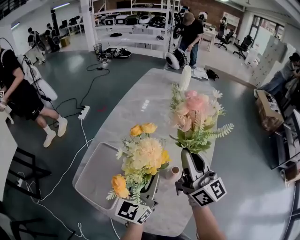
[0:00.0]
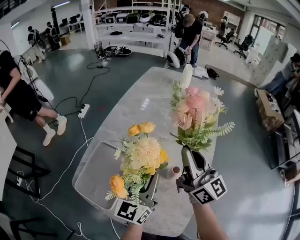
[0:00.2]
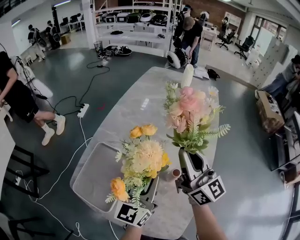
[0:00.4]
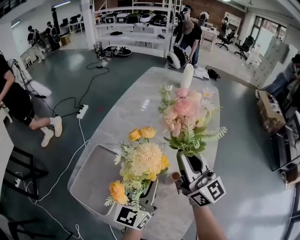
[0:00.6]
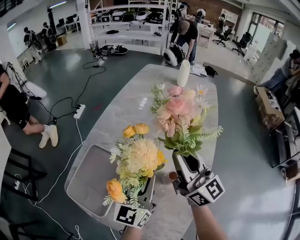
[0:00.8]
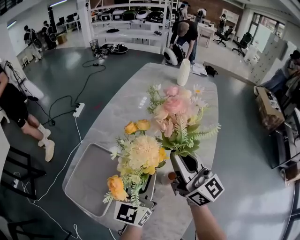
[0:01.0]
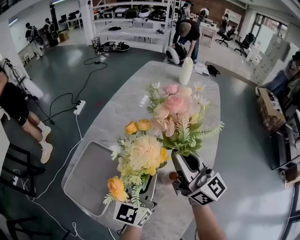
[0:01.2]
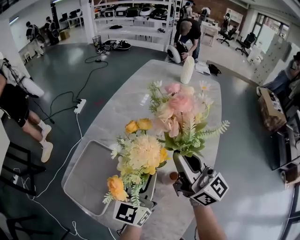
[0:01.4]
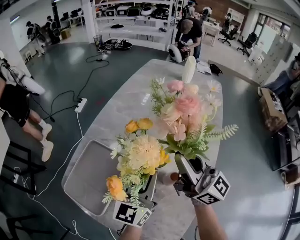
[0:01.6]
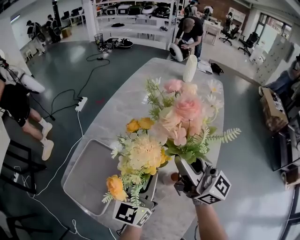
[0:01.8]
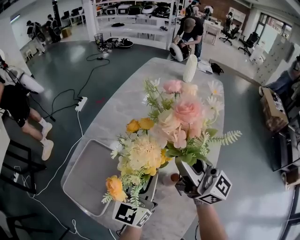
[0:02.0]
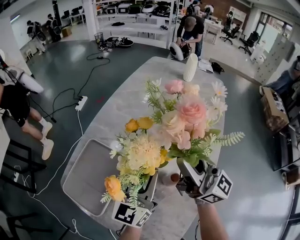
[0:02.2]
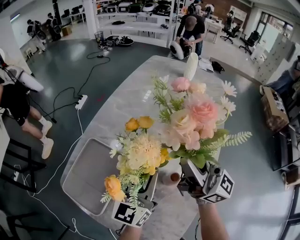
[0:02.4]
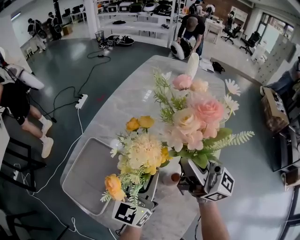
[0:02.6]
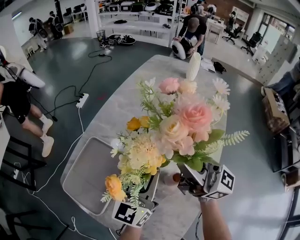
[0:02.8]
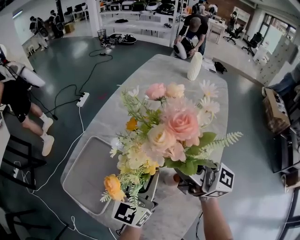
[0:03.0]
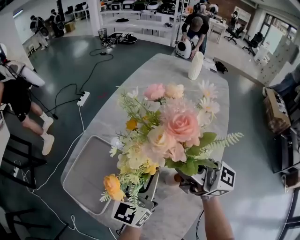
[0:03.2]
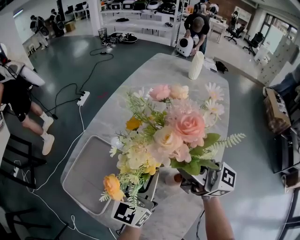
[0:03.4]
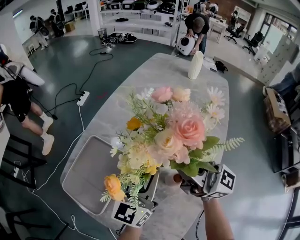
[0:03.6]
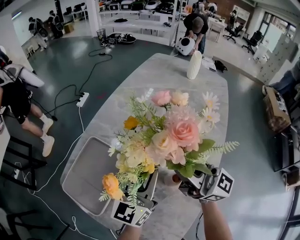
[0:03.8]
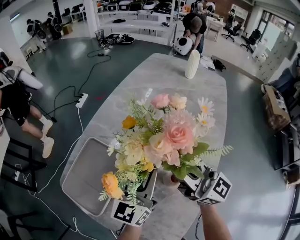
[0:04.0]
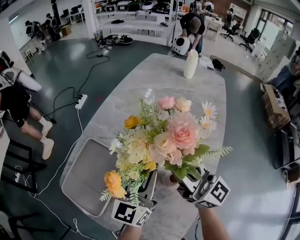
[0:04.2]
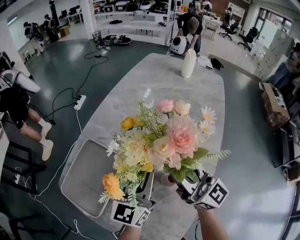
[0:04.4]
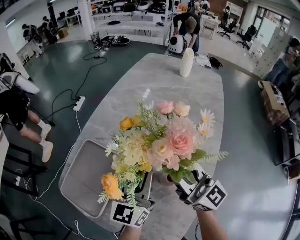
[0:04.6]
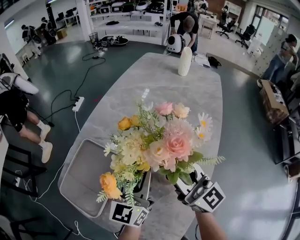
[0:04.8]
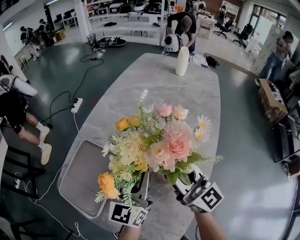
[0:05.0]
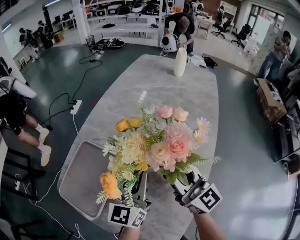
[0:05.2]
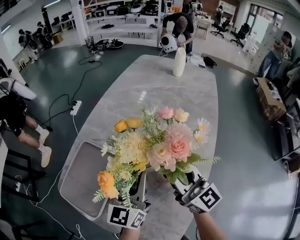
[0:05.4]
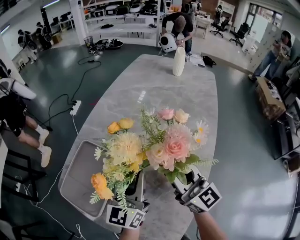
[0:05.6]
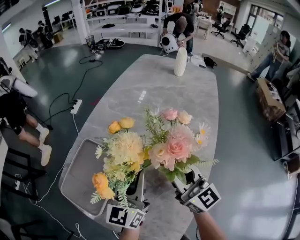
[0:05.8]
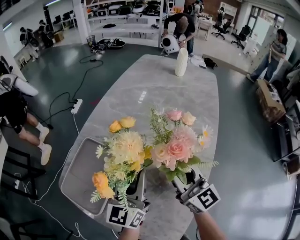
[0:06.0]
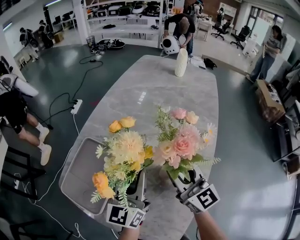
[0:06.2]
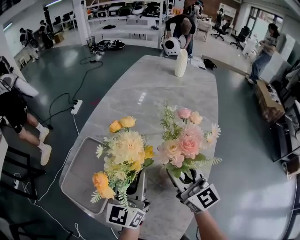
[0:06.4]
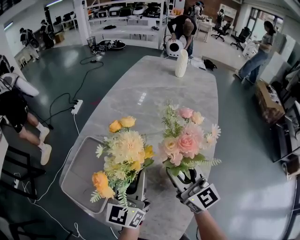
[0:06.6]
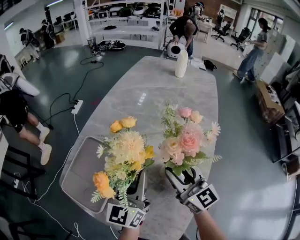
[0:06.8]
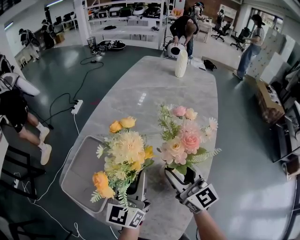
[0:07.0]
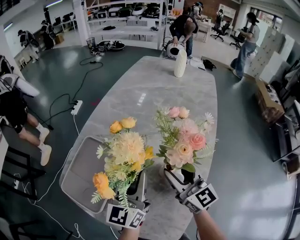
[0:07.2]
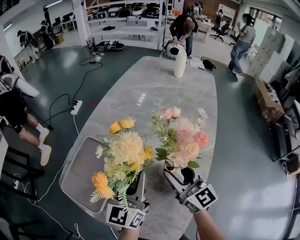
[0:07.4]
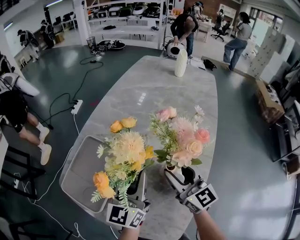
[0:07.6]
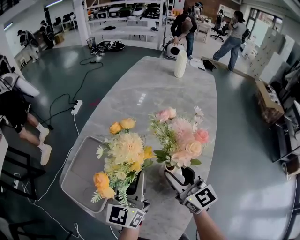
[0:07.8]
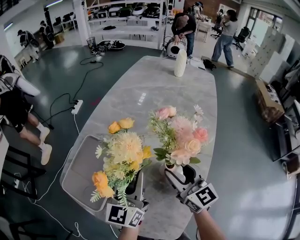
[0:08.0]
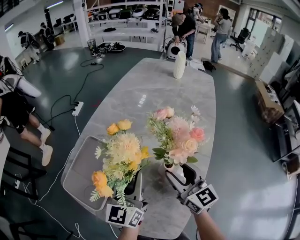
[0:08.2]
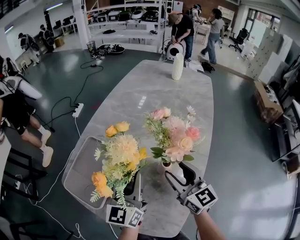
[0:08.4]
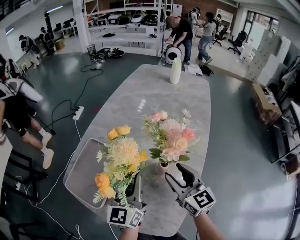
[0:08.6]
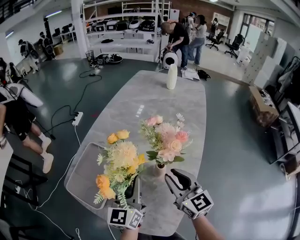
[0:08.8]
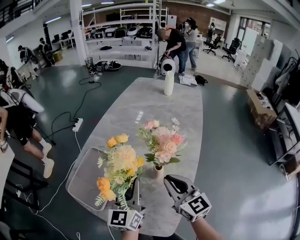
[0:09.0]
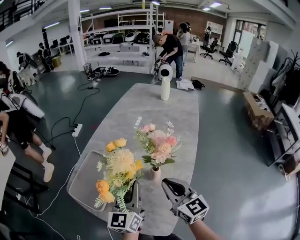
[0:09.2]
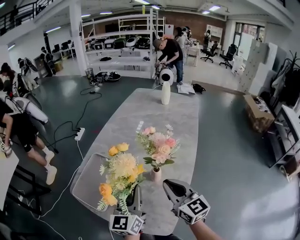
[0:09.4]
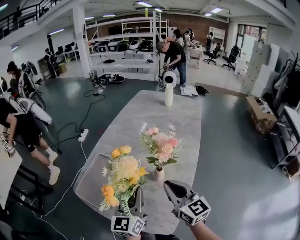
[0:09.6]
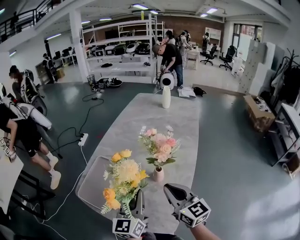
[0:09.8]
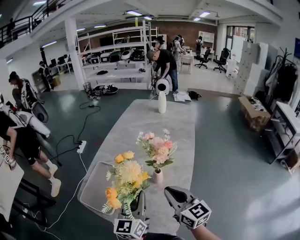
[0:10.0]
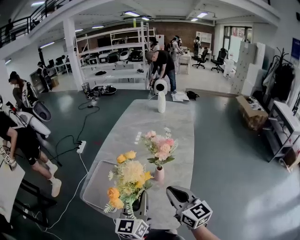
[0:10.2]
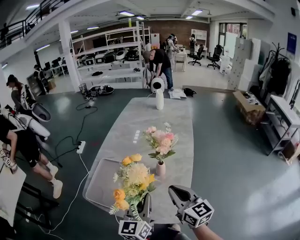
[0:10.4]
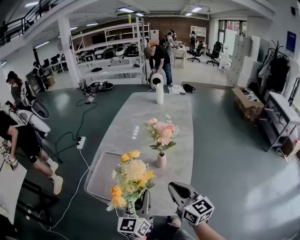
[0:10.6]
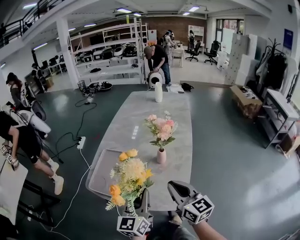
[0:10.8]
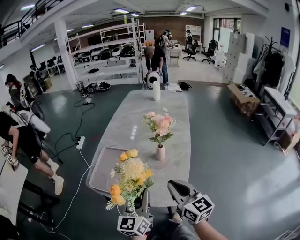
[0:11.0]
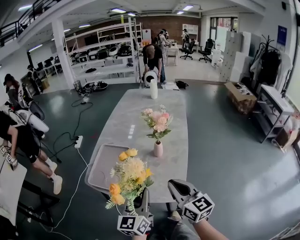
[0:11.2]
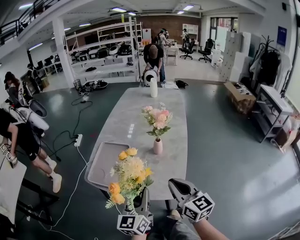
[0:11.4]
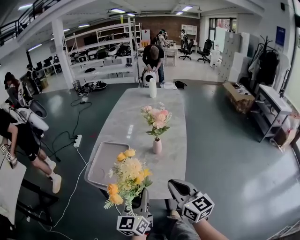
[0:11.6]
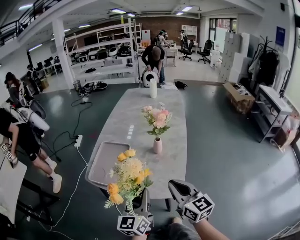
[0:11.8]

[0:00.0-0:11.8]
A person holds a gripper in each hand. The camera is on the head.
0:00.0 to 0:01.4: The left gripper ends up roughly 5 cm from where it was.
0:01.4 to 0:03.0: The right gripper rotates some 30 degrees.
0:03.0 to 0:04.4: The right gripper shifts approximately 5 cm downward, and changes its angle by about 20 degrees.
0:04.4 to 0:06.0: The grippers move only a little.
0:06.0 to 0:07.4: The right gripper opens its fingers.
0:07.4 to 0:08.8: The right gripper moves about 5 cm.
0:08.8 to 0:10.4: The left gripper goes approximately 15 cm backward. Meanwhile the right gripper shifts about 15 cm backward and upward, and closes.
0:10.4 to 0:11.8: The grippers both shift backward by about 15 cm.

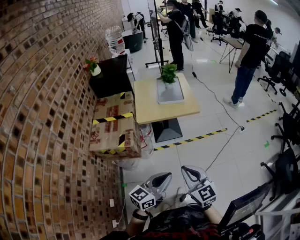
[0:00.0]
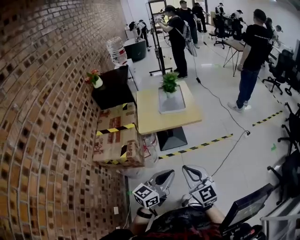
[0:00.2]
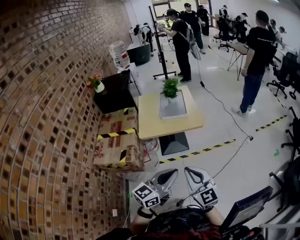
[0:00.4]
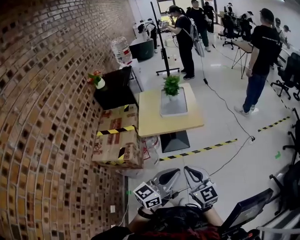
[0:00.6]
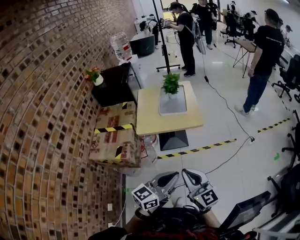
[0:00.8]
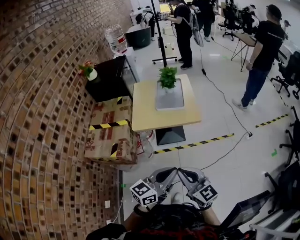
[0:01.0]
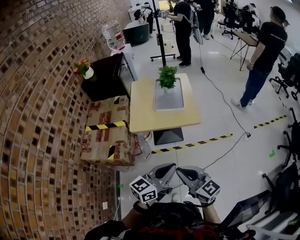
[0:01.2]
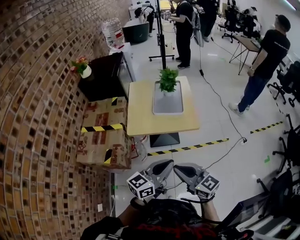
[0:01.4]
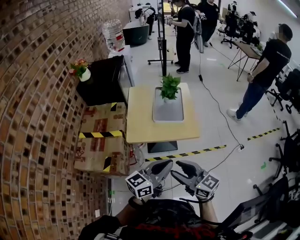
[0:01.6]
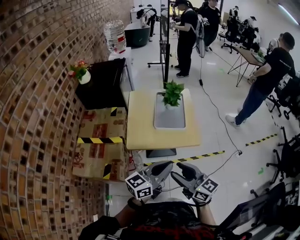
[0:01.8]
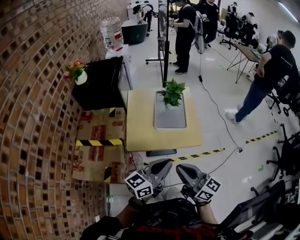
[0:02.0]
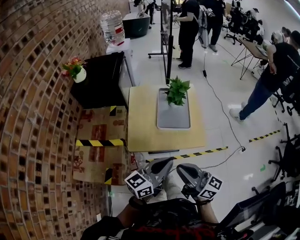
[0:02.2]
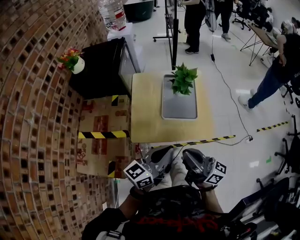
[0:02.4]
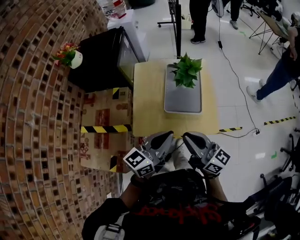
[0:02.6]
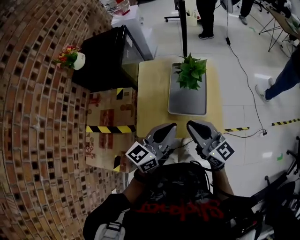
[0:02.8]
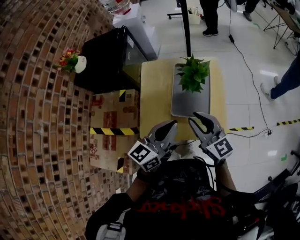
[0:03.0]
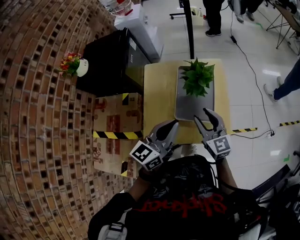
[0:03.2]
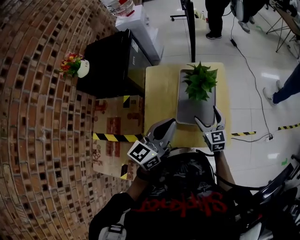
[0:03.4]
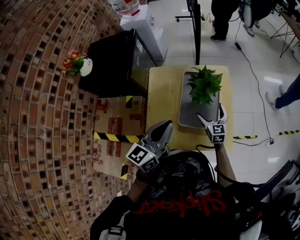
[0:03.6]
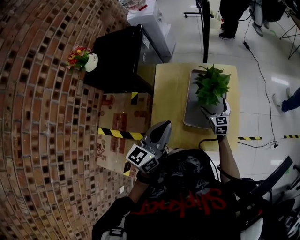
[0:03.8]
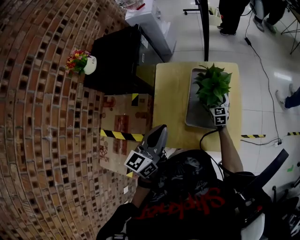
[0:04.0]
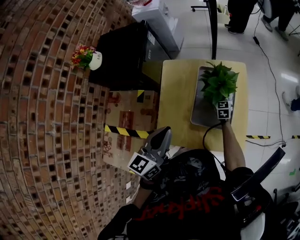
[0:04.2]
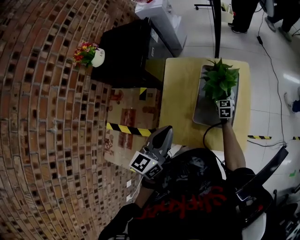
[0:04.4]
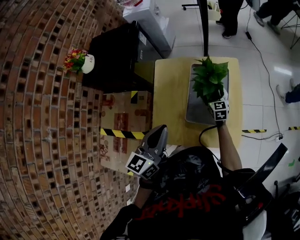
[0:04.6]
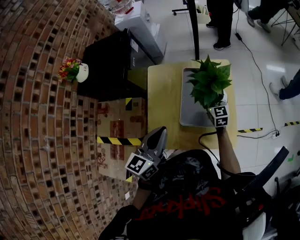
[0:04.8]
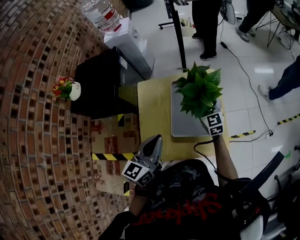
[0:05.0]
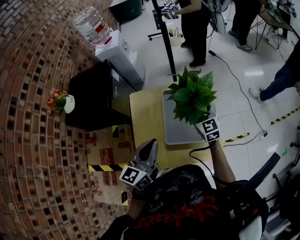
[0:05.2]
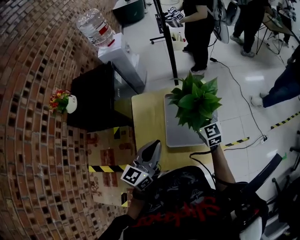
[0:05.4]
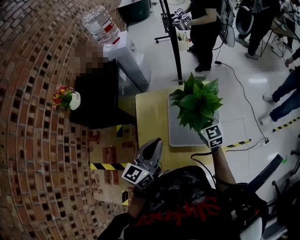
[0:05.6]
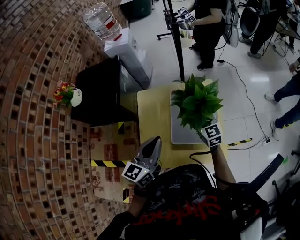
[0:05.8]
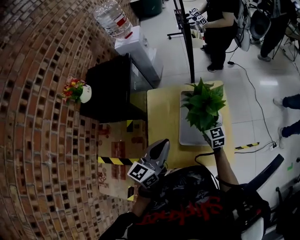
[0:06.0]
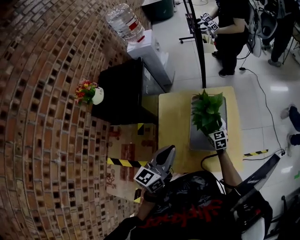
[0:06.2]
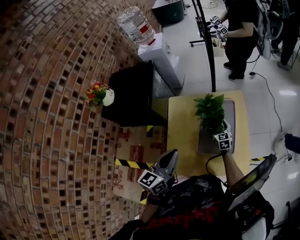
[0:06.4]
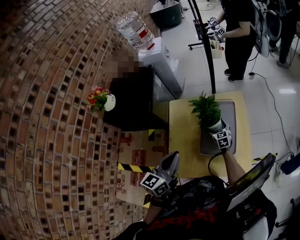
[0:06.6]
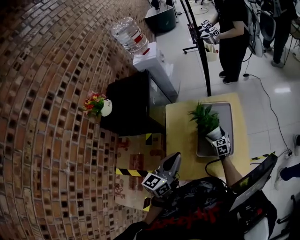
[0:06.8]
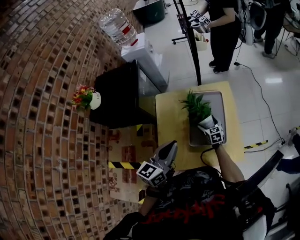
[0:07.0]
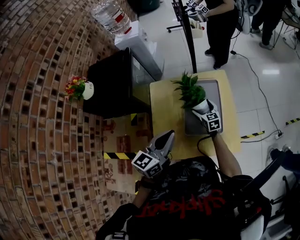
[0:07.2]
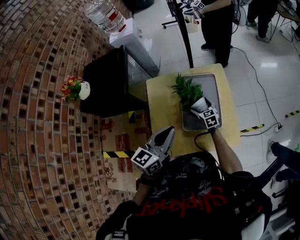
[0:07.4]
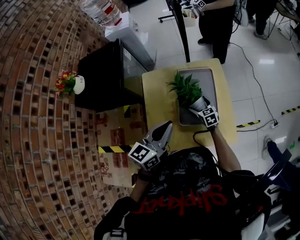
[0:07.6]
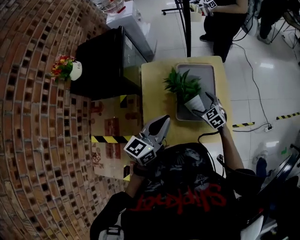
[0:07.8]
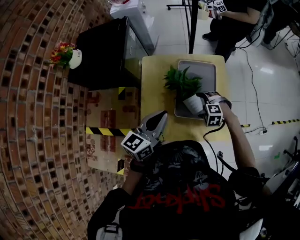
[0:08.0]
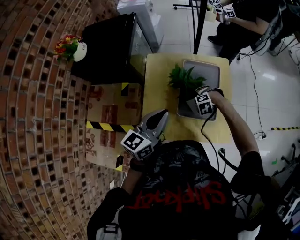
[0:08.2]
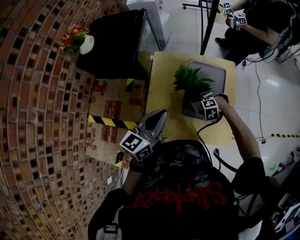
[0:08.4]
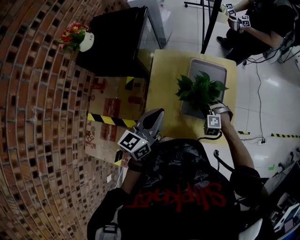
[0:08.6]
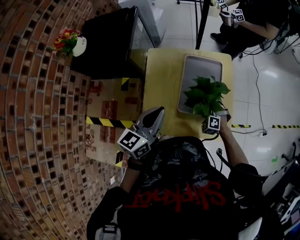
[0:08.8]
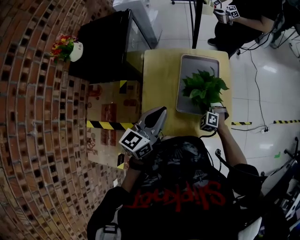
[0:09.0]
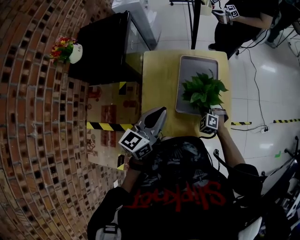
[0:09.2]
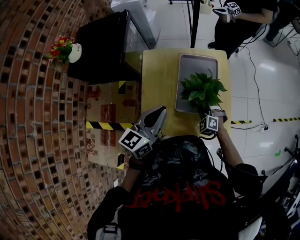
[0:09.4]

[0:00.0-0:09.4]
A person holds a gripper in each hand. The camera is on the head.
0:00.0 to 0:01.6: The grippers both shift forward by some 25 cm. The right gripper rotates some 30 degrees.
0:01.6 to 0:03.2: Both grippers move forward, roughly 40 cm. The right gripper swivels roughly 20 degrees.
0:03.2 to 0:04.8: The left gripper travels to the left by about 5 cm. Meanwhile the right gripper heads forward and downward, covering about 20 cm, and opens up.
0:04.8 to 0:06.2: The right gripper travels upward and back again, some 15 cm each way.
0:06.2 to 0:07.8: The right gripper goes roughly 5 cm backward, and rotates about 30 degrees.
0:07.8 to 0:09.4: The right gripper shifts by about 5 cm, changes its angle by roughly 40 degrees, and closes its fingers.

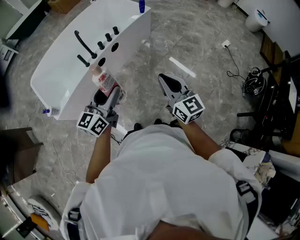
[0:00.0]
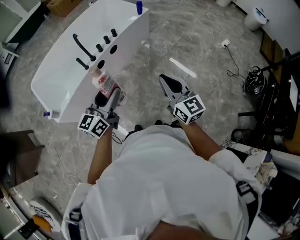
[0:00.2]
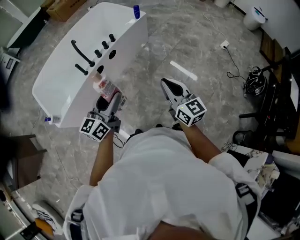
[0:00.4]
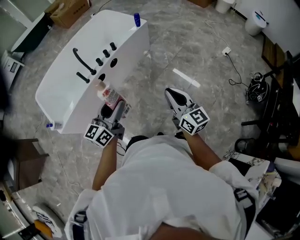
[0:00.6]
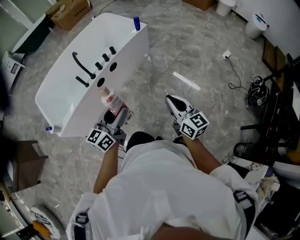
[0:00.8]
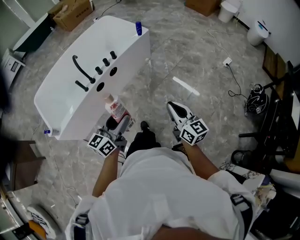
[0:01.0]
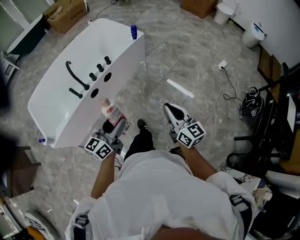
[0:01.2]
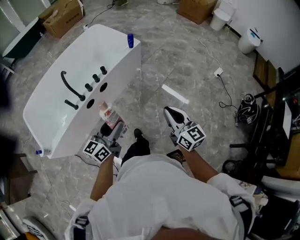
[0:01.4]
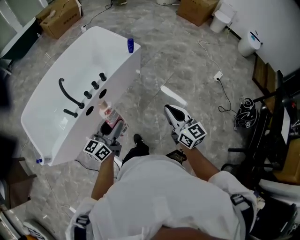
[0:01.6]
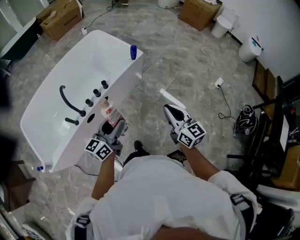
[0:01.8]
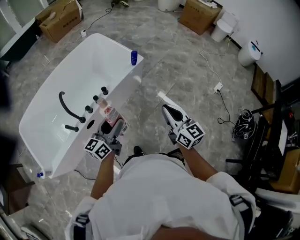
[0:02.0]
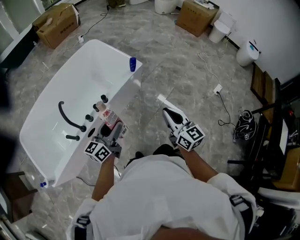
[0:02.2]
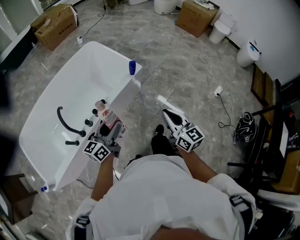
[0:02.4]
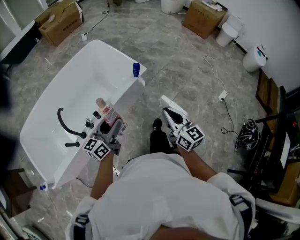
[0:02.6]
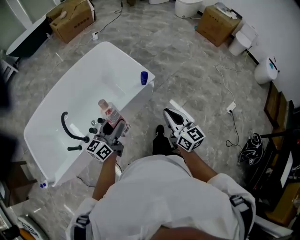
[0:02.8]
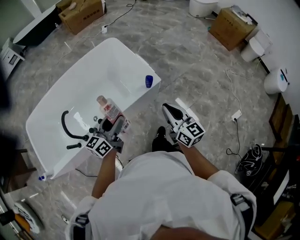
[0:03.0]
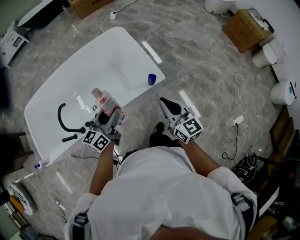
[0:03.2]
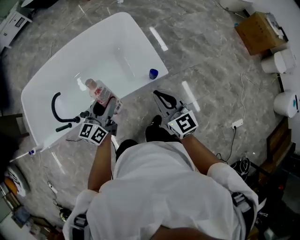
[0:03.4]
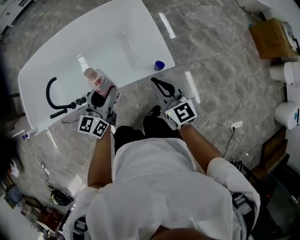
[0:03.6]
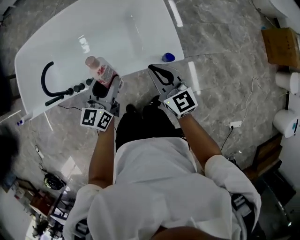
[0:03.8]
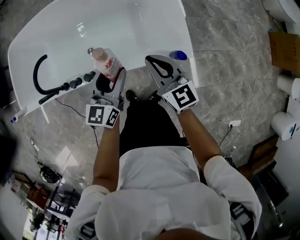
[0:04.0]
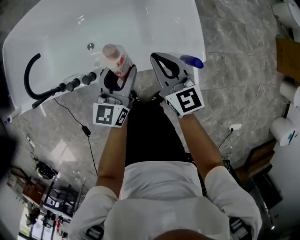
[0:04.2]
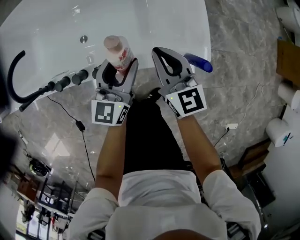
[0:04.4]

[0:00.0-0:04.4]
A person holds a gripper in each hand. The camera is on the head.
0:00.0 to 0:01.4: The right gripper heads forward and to the right, covering about 20 cm, while the left gripper heads forward, to the right and downward, covering roughly 20 cm.
0:01.4 to 0:03.0: The pair of grippers is taken forward, some 50 cm.
0:03.0 to 0:04.4: The right gripper ends up approximately 40 cm from where it was, and swivels about 30 degrees, while the left gripper moves downward, approximately 25 cm, and swivels roughly 40 degrees.
